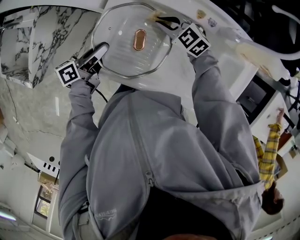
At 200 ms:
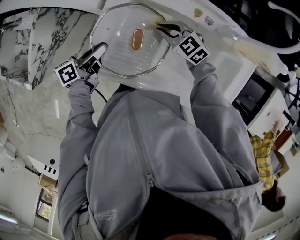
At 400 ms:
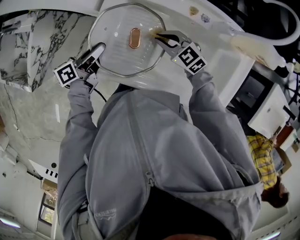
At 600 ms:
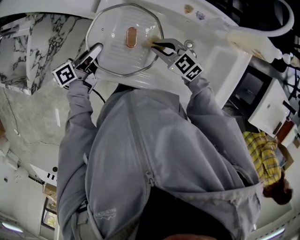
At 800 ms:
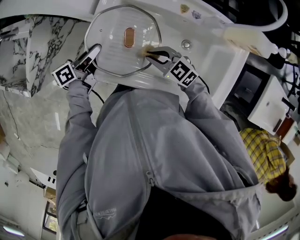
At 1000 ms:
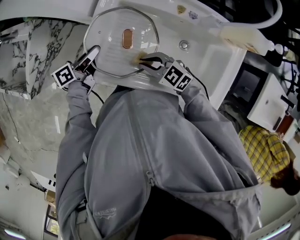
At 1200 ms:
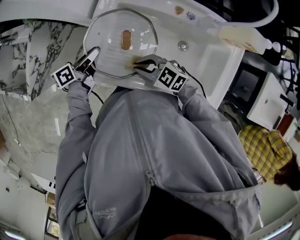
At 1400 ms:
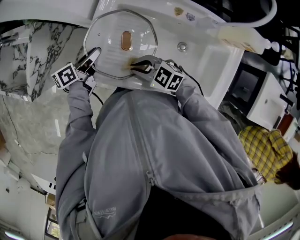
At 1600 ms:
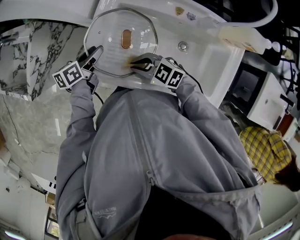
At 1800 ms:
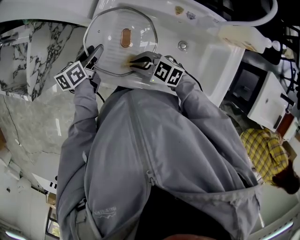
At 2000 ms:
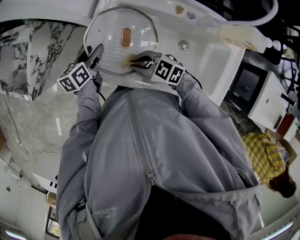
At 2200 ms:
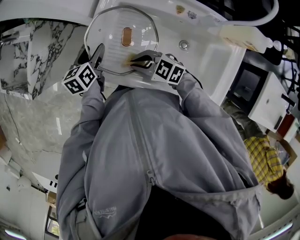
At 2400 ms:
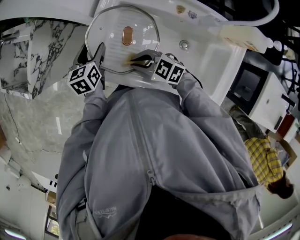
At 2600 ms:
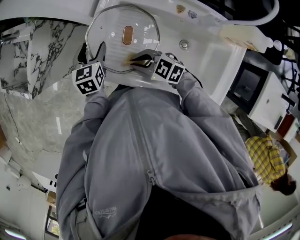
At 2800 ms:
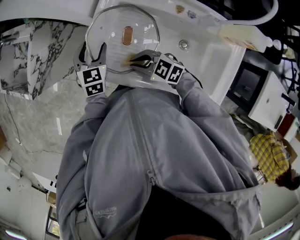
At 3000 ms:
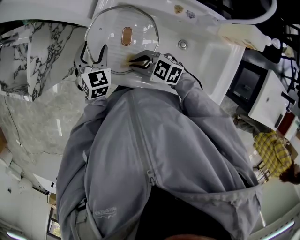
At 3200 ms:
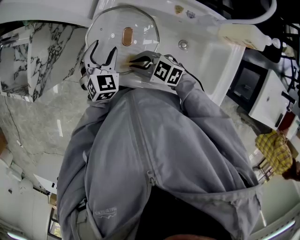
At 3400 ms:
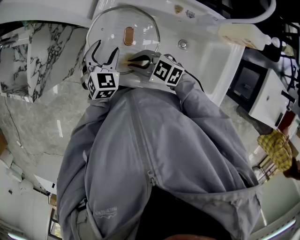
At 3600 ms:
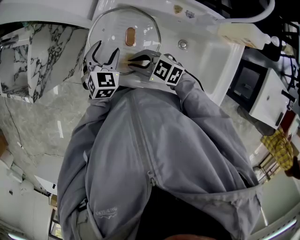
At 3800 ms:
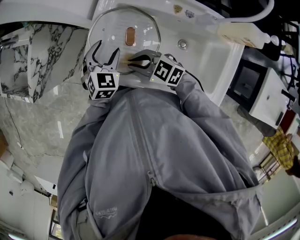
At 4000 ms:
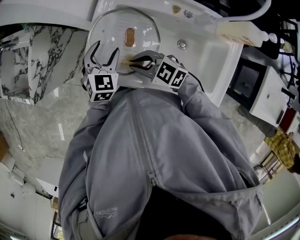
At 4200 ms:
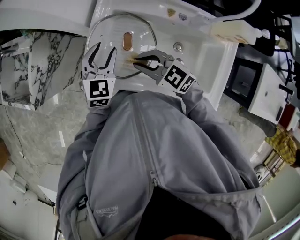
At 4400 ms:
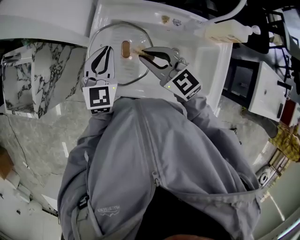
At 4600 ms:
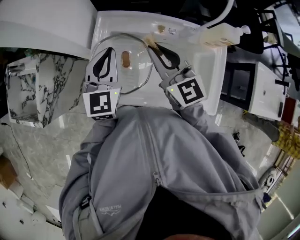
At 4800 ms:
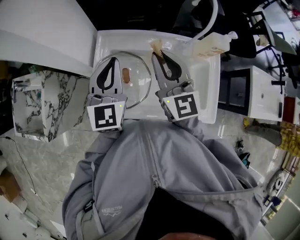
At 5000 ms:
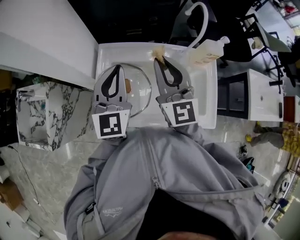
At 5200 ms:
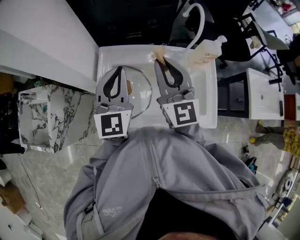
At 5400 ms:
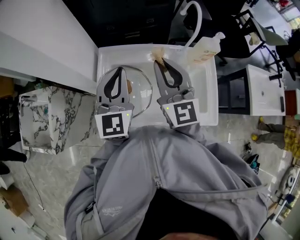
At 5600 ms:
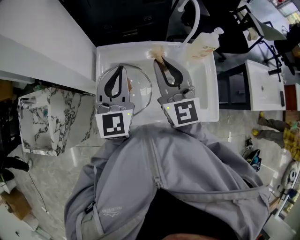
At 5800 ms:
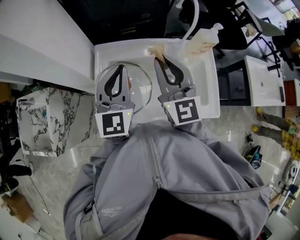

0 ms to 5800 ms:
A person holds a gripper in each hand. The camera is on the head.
0 ms to 1400 ms: The right gripper shifts by some 20 cm.
1400 ms to 2800 ms: The left gripper changes its angle by roughly 70 degrees, and opens.
2800 ms to 4400 ms: The grippers both shift upward by some 15 cm. The right gripper swivels some 40 degrees; the left gripper rotates some 30 degrees, and closes.
4400 ms to 5800 ms: Both grippers travel together upward, about 15 cm. The right gripper changes its angle by about 50 degrees; the left gripper changes its angle by some 20 degrees.

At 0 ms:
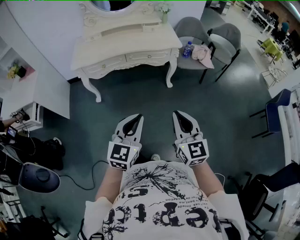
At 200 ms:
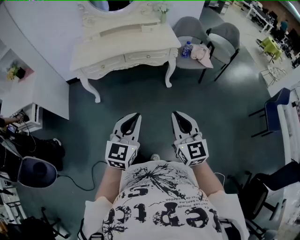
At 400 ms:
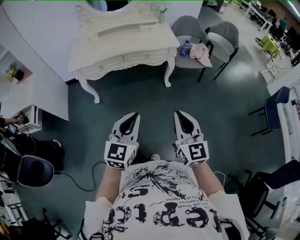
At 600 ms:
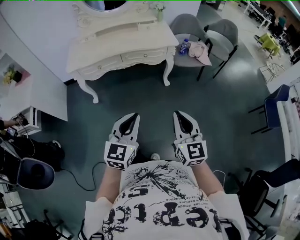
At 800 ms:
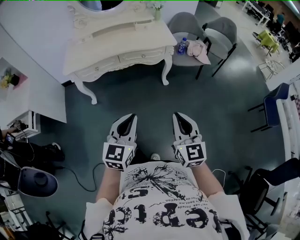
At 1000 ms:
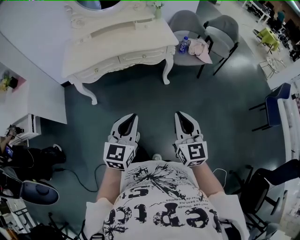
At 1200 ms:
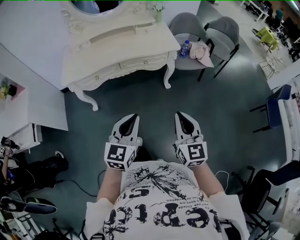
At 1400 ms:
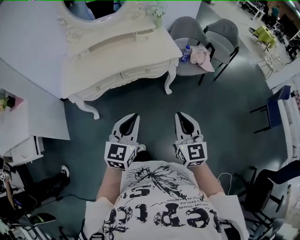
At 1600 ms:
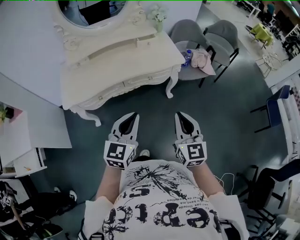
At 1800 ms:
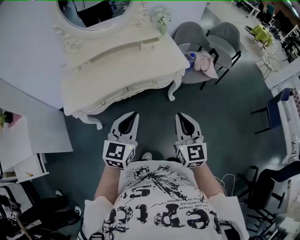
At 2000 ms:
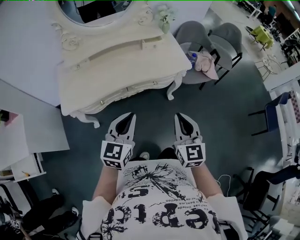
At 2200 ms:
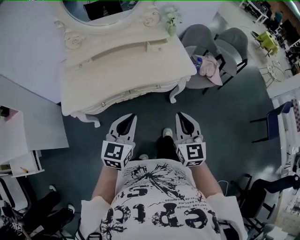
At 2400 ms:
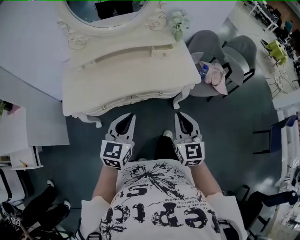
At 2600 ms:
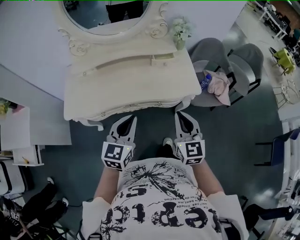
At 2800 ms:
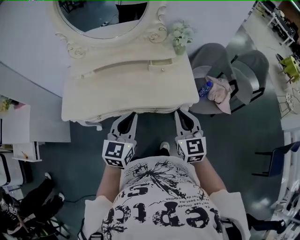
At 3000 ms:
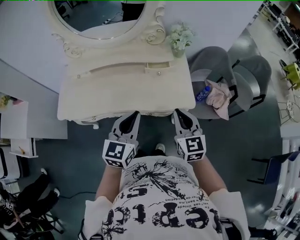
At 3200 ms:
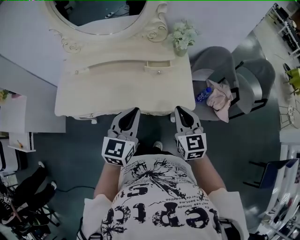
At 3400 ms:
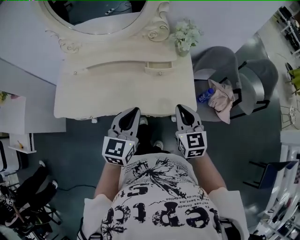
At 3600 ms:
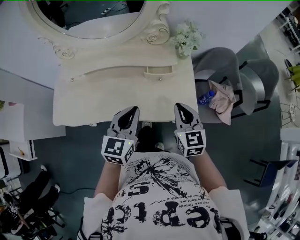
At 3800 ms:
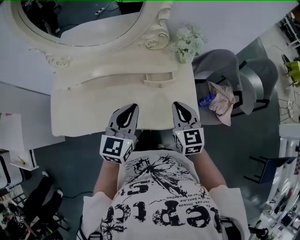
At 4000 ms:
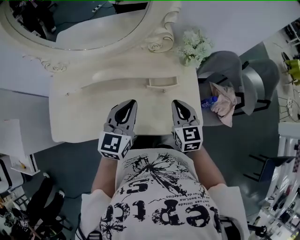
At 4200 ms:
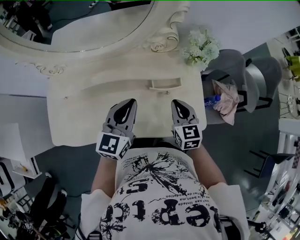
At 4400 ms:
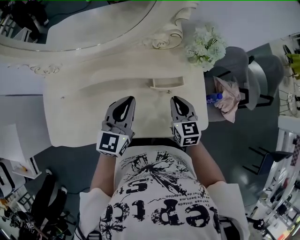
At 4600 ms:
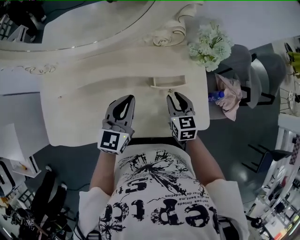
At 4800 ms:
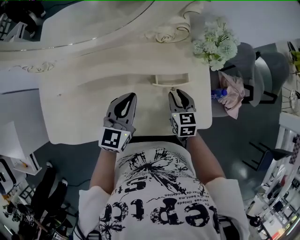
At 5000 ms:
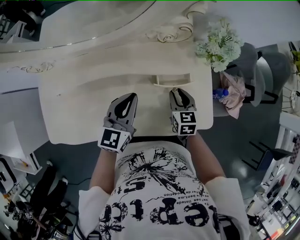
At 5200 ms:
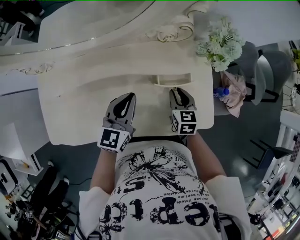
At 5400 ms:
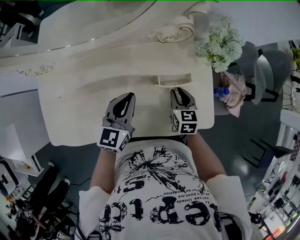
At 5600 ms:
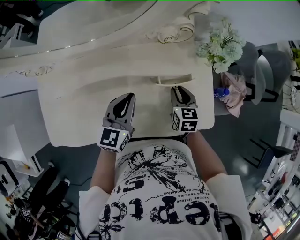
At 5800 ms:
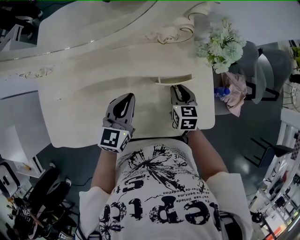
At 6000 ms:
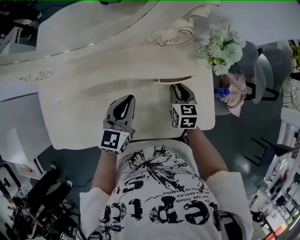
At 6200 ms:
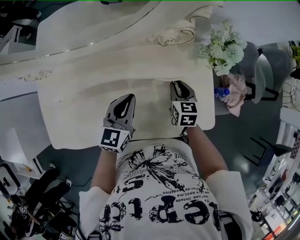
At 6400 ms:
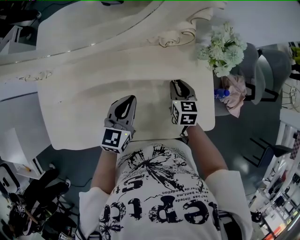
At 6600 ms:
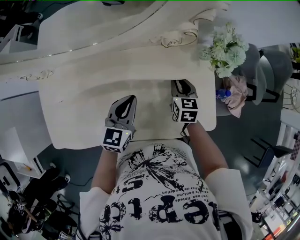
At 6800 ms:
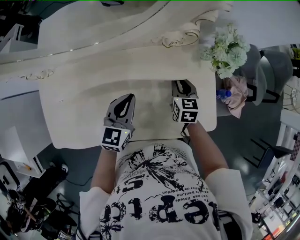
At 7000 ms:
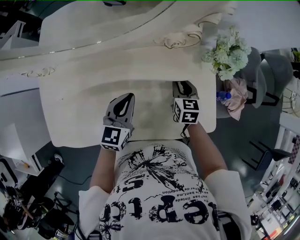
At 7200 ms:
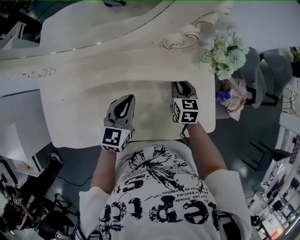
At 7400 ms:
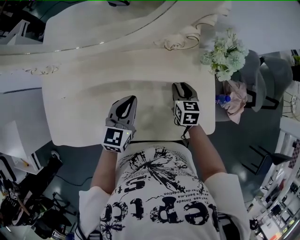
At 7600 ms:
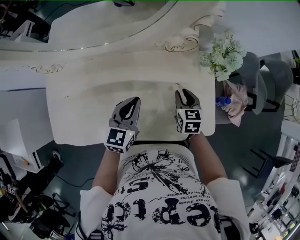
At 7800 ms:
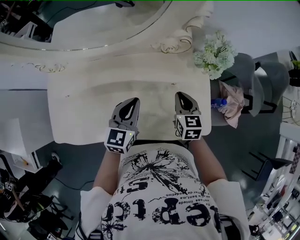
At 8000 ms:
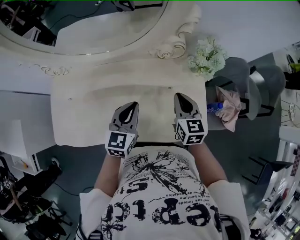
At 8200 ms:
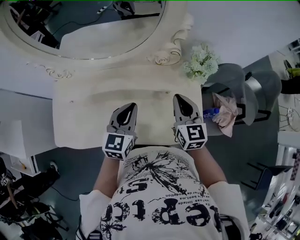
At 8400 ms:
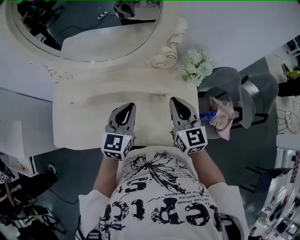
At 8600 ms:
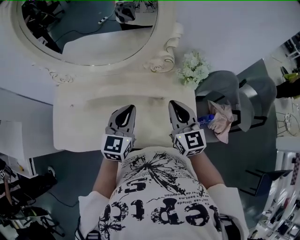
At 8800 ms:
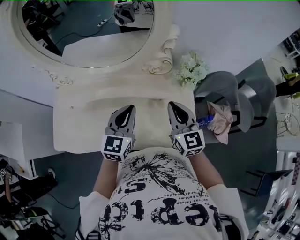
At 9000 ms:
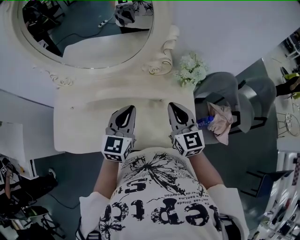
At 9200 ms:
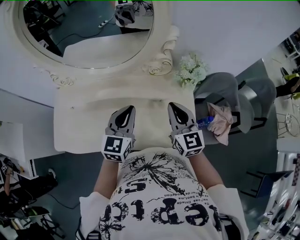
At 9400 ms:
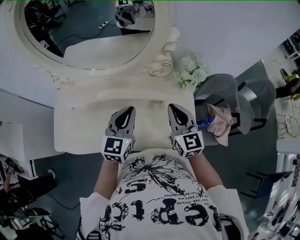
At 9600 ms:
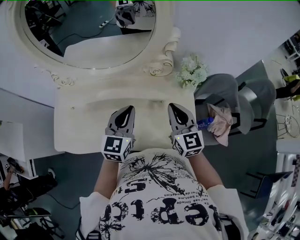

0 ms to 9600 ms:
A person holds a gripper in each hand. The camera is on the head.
0 ms to 1600 ms: The right gripper is displaced forward by about 25 cm. The left gripper travels forward and to the left by some 30 cm.
1600 ms to 3200 ms: The two grippers go approximately 35 cm forward. The right gripper rotates about 20 degrees.
3200 ms to 4800 ms: Both grippers move forward and downward, some 30 cm. The right gripper turns by approximately 20 degrees, and opens up.
4800 ms to 6400 ms: The right gripper shifts approximately 5 cm forward.
6400 ms to 8000 ms: The right gripper goes roughly 15 cm upward. Meanwhile the left gripper heads upward, covering about 5 cm.
8000 ms to 9600 ms: The two grippers go roughly 10 cm upward.

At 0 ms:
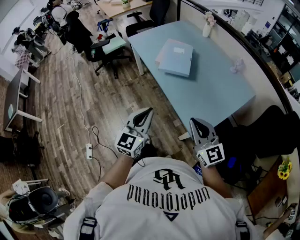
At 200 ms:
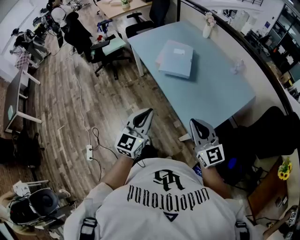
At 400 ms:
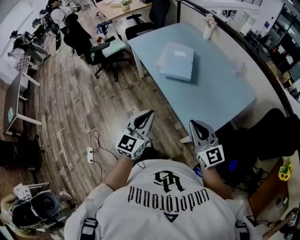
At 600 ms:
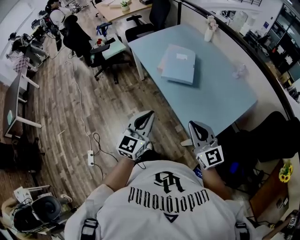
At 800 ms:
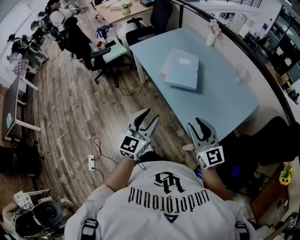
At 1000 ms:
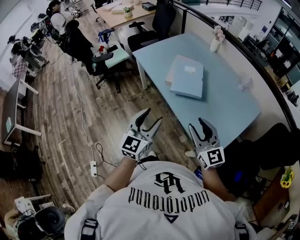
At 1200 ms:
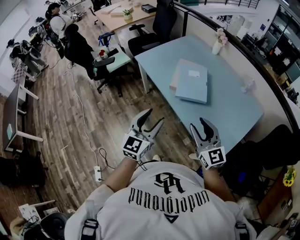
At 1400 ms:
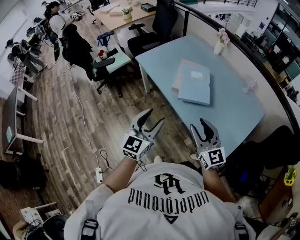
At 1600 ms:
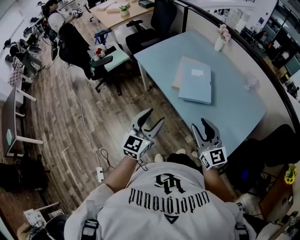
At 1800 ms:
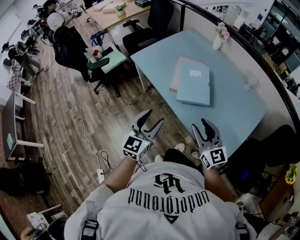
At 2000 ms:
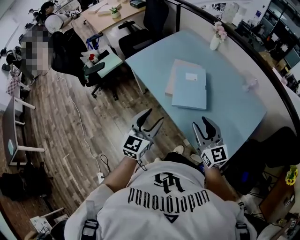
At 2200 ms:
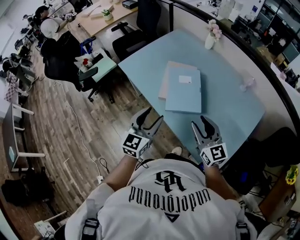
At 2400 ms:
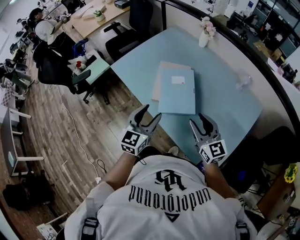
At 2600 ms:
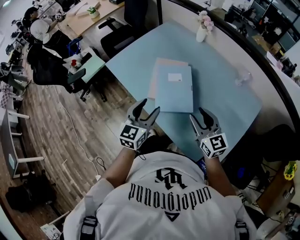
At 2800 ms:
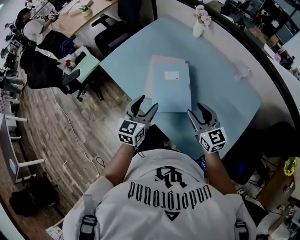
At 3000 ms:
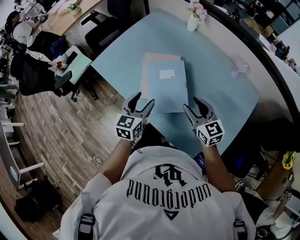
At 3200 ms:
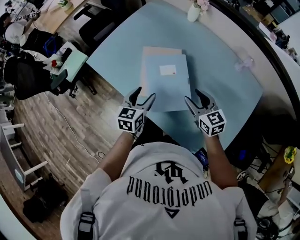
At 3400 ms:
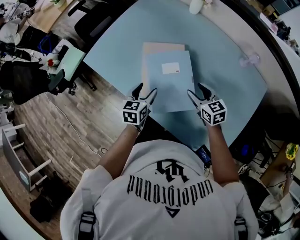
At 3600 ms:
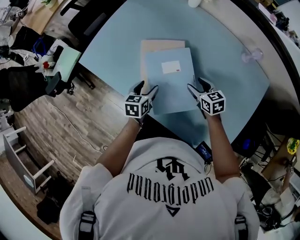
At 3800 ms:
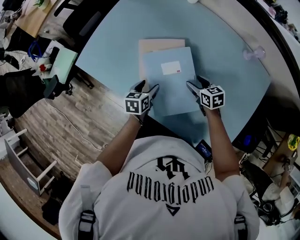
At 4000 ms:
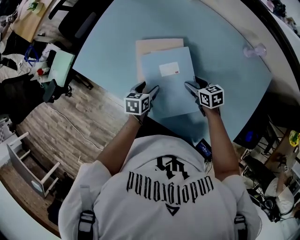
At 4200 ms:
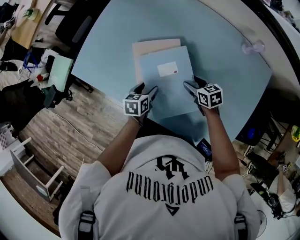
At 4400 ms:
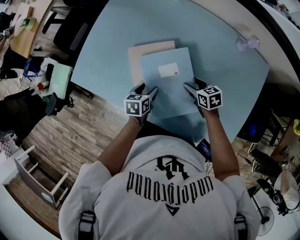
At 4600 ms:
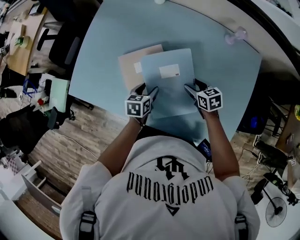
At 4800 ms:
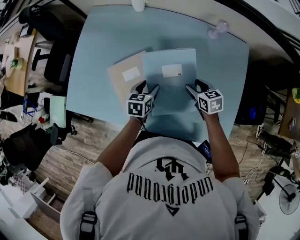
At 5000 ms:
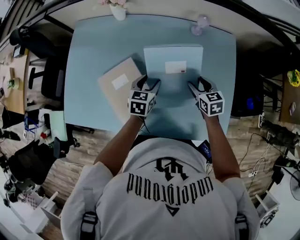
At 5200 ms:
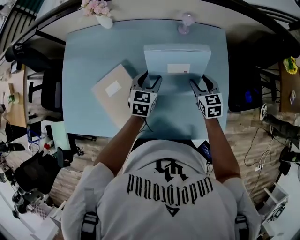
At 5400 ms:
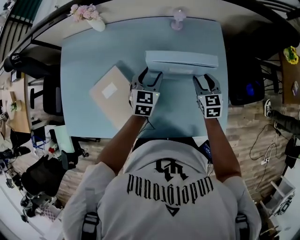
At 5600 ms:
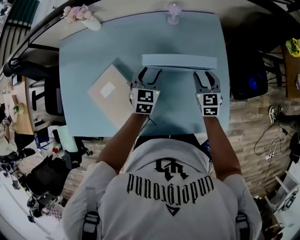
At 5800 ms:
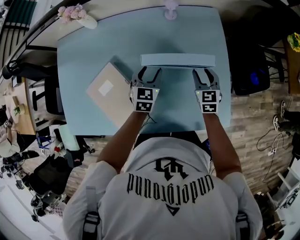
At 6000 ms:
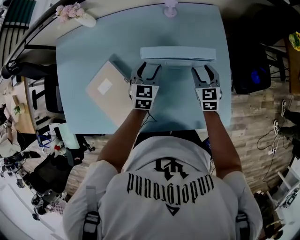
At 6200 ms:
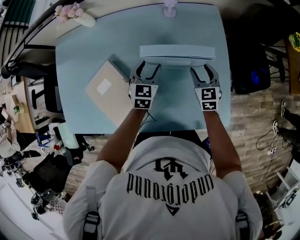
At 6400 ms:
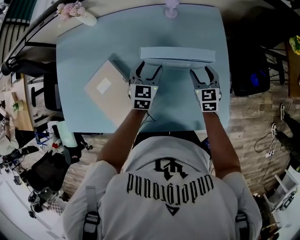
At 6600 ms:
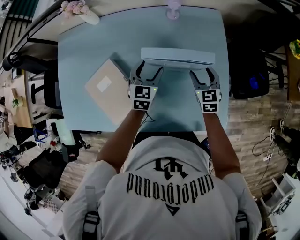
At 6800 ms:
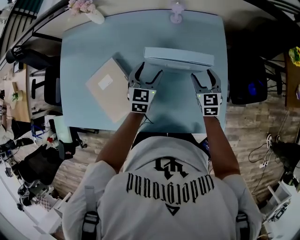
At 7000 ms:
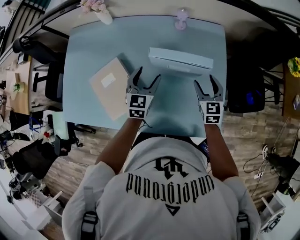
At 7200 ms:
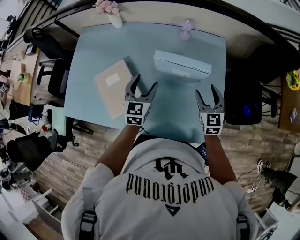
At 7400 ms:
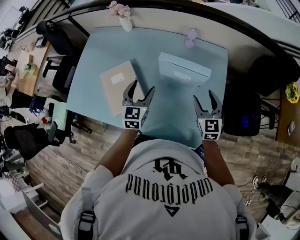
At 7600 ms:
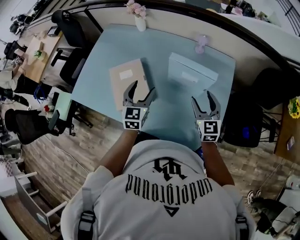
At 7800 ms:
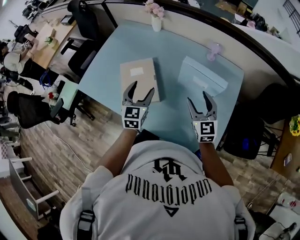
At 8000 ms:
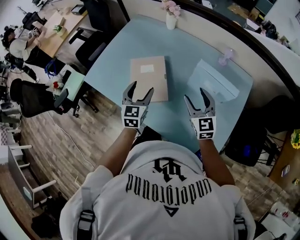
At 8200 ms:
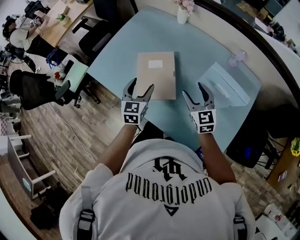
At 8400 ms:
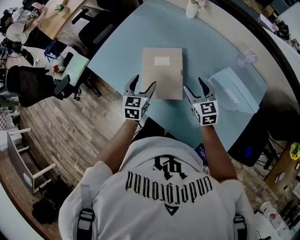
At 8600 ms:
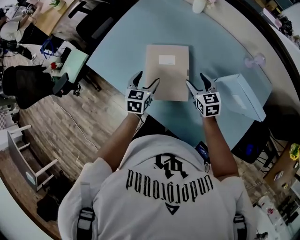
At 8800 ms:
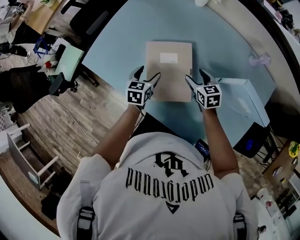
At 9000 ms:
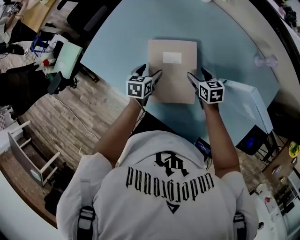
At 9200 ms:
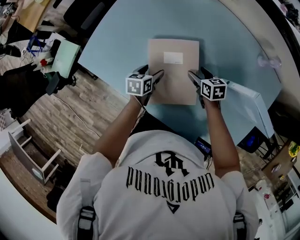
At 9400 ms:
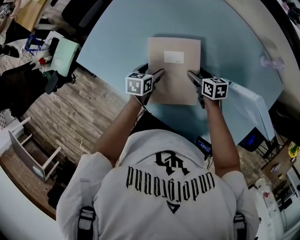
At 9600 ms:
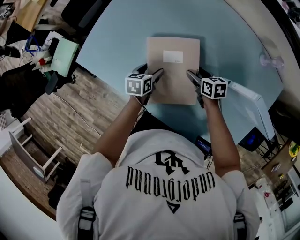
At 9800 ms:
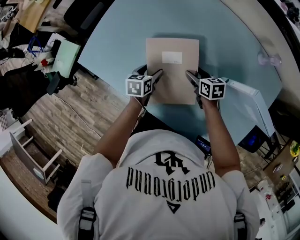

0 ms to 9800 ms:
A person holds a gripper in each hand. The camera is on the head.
0 ms to 1400 ms: Both grippers travel together forward and to the left, some 25 cm. The right gripper opens up; the left gripper opens its fingers.
1400 ms to 2800 ms: Both grippers travel together forward and to the right, some 30 cm.
2800 ms to 4200 ms: Both grippers move downward and forward, approximately 30 cm. The right gripper tips its fingers downward by some 30 degrees. The left gripper angles its fingers downward, by some 30 degrees.
4200 ms to 5600 ms: The left gripper changes place by roughly 35 cm, and twists approximately 50 degrees clockwise, seen from behind. The right gripper ends up about 35 cm from where it was, and swivels about 60 degrees.
5600 ms to 7000 ms: The right gripper opens up; the left gripper shifts by roughly 5 cm.
7000 ms to 8400 ms: The right gripper goes upward and returns, about 10 cm each way, and turns by approximately 40 degrees. The left gripper reaches some 10 cm upward, then returns, and changes its angle by roughly 40 degrees.
8400 ms to 9800 ms: The two grippers go roughly 20 cm downward and forward. The right gripper swivels about 40 degrees. The left gripper rotates approximately 30 degrees.
